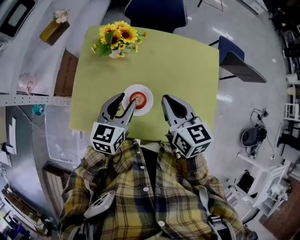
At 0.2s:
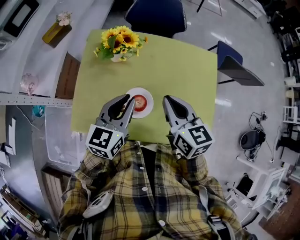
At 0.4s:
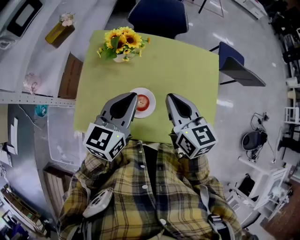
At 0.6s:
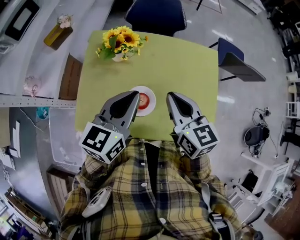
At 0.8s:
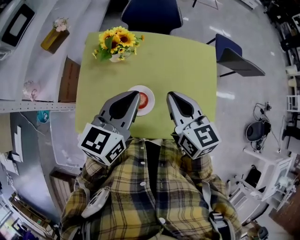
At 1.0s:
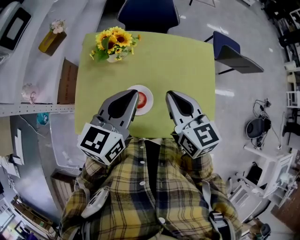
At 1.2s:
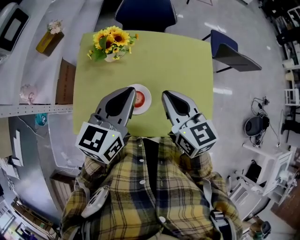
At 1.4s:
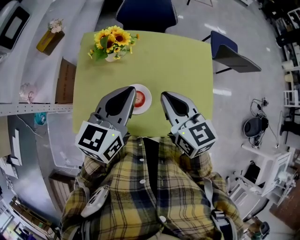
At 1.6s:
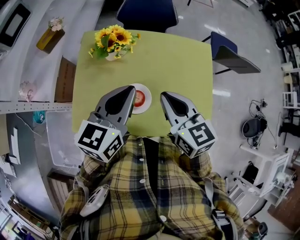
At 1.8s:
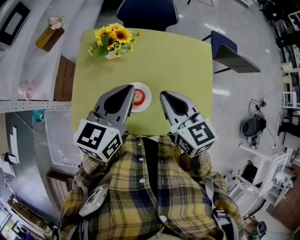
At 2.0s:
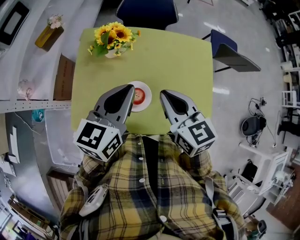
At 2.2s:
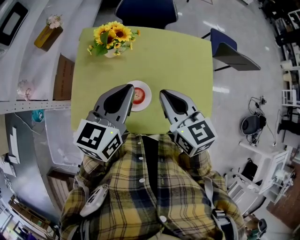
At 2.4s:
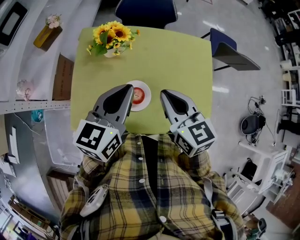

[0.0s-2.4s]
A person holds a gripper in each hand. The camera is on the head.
0.0s to 1.2s: The right gripper goes some 5 cm upward. Meanwhile the left gripper is displaced upward by roughly 15 cm, and closes.
1.2s to 2.4s: There are only small adjustments of the grippers.

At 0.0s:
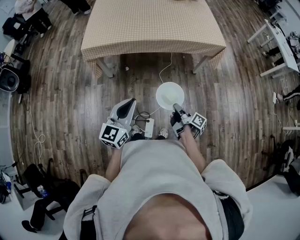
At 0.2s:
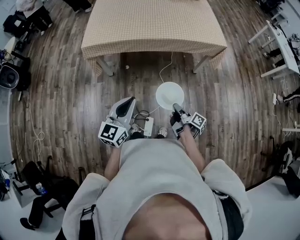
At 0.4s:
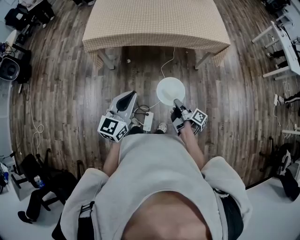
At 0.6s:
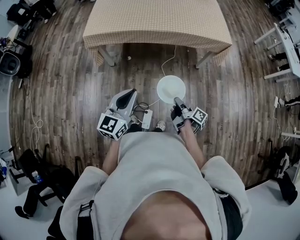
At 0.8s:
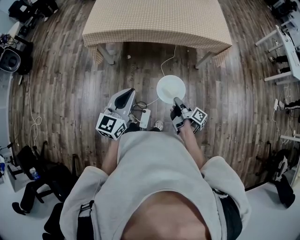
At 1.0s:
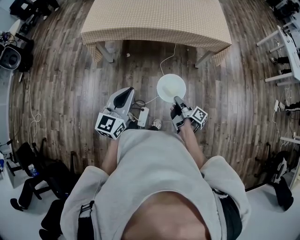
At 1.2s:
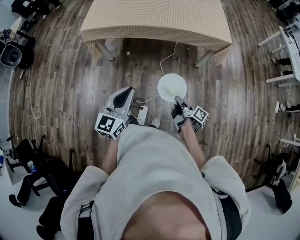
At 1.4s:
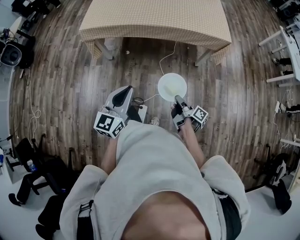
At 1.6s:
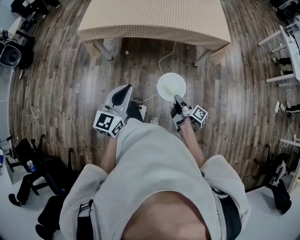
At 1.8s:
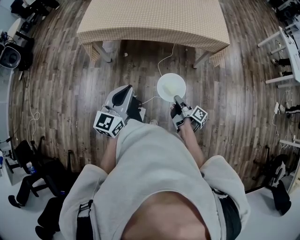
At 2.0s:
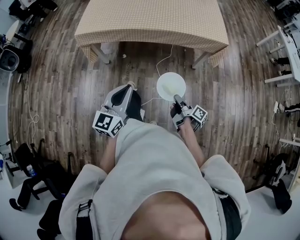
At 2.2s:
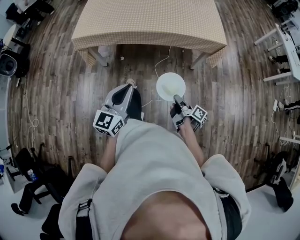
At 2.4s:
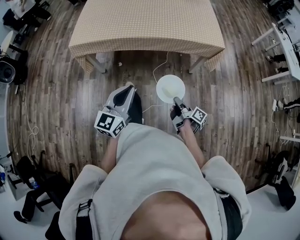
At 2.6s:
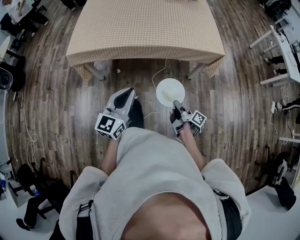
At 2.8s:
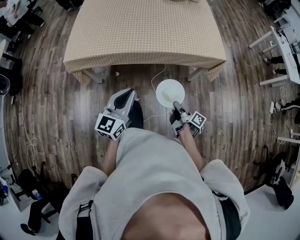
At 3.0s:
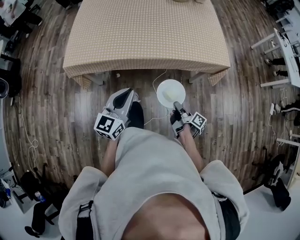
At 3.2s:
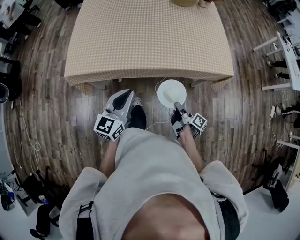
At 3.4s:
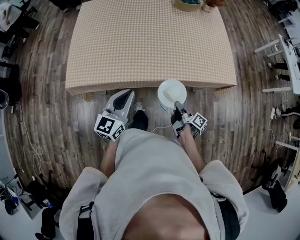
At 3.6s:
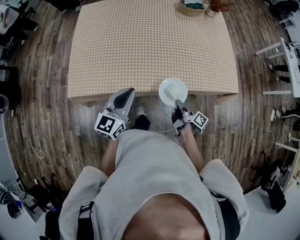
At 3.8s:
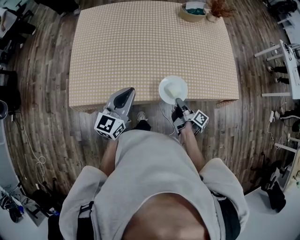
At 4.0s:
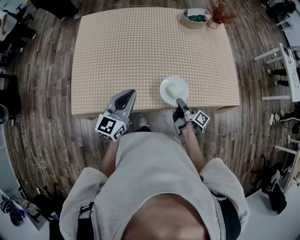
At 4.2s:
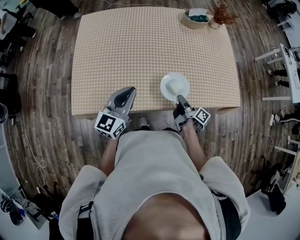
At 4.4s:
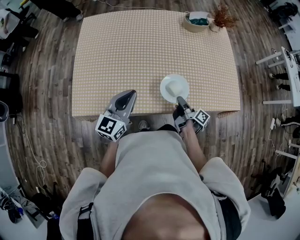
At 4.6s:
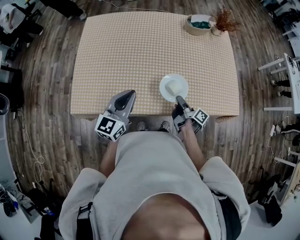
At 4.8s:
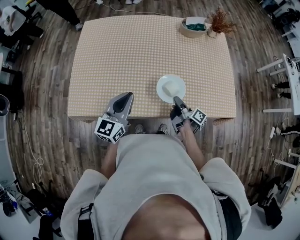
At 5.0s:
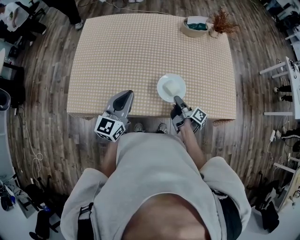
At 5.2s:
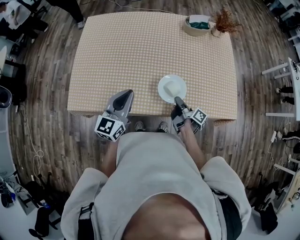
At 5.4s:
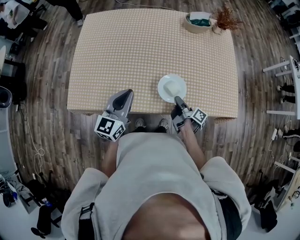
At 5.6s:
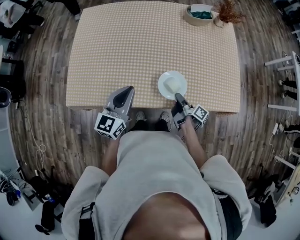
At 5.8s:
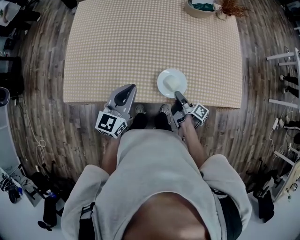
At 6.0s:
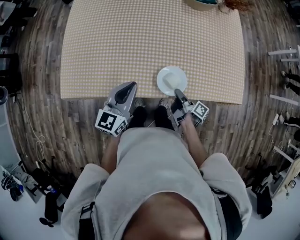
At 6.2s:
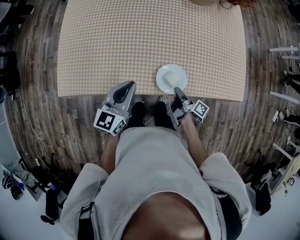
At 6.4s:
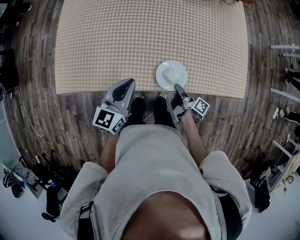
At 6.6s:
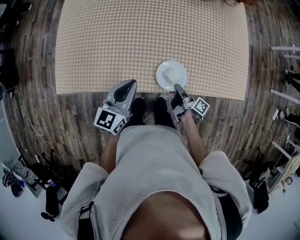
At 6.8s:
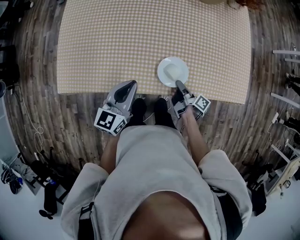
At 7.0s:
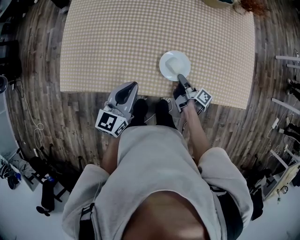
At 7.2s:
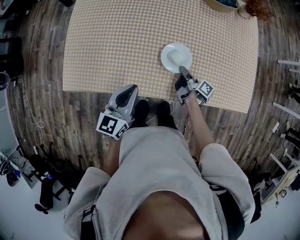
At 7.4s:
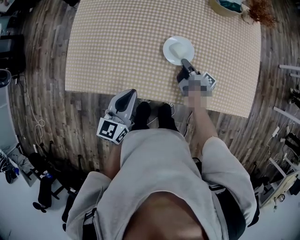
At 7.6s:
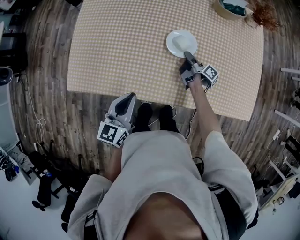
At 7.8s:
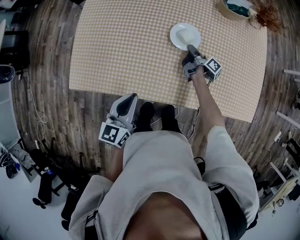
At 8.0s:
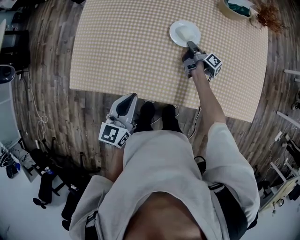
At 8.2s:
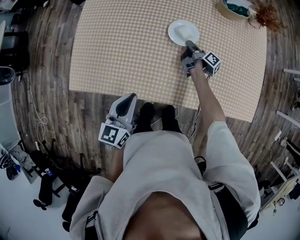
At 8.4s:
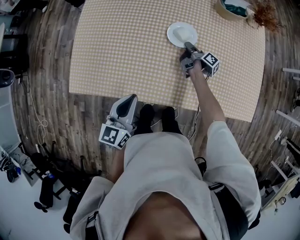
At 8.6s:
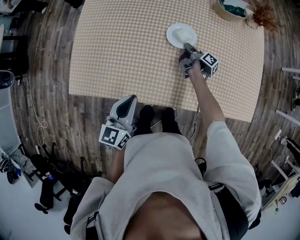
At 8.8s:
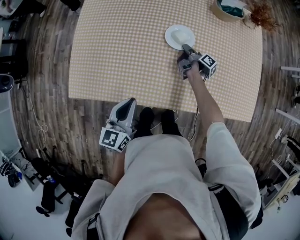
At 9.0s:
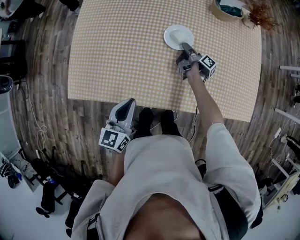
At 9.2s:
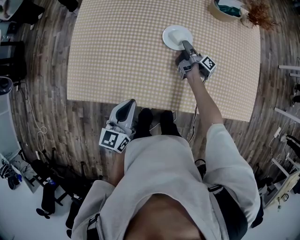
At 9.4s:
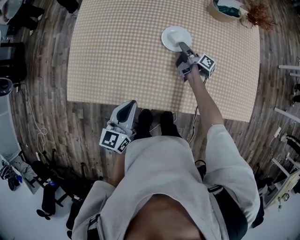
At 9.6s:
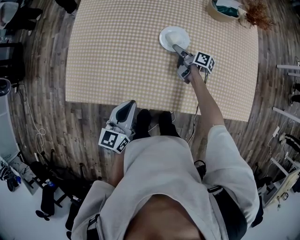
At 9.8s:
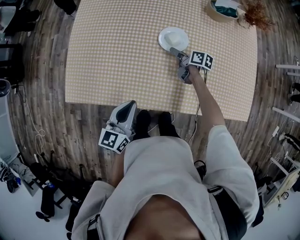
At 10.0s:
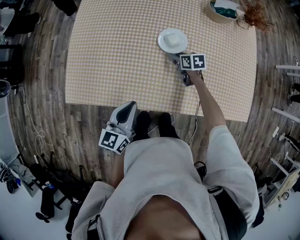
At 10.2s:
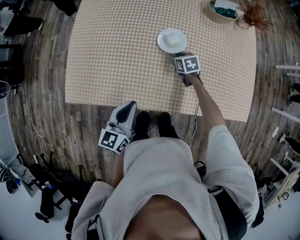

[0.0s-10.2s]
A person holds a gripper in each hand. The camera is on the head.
0.0s to 1.4s: The left gripper moves roughly 10 cm.
1.4s to 3.0s: The left gripper moves roughly 30 cm.
3.0s to 4.4s: The left gripper shifts by roughly 35 cm.
4.4s to 5.8s: The left gripper moves roughly 5 cm.
5.8s to 7.2s: The left gripper shifts by approximately 5 cm.

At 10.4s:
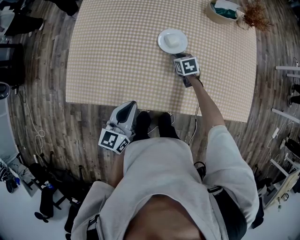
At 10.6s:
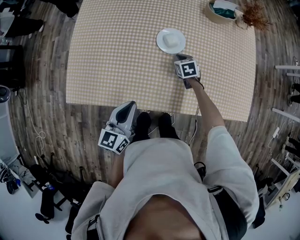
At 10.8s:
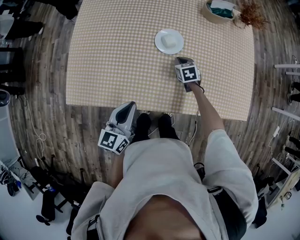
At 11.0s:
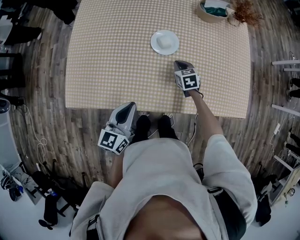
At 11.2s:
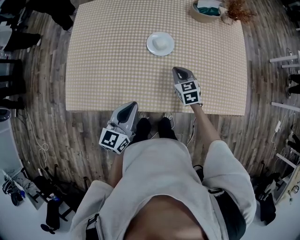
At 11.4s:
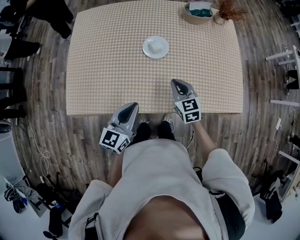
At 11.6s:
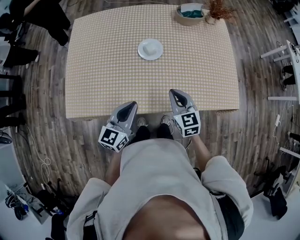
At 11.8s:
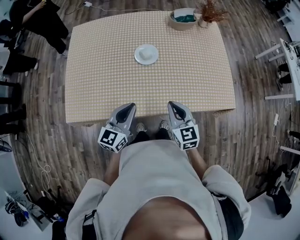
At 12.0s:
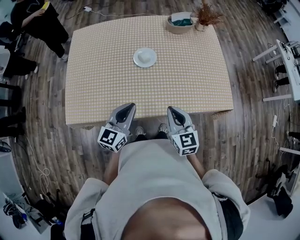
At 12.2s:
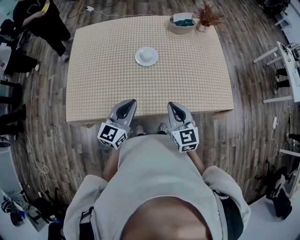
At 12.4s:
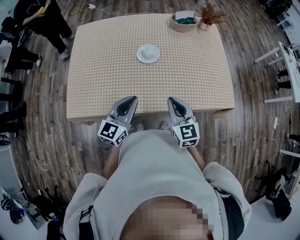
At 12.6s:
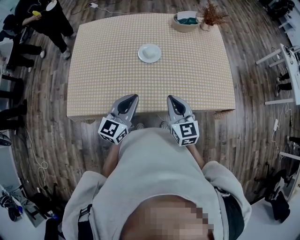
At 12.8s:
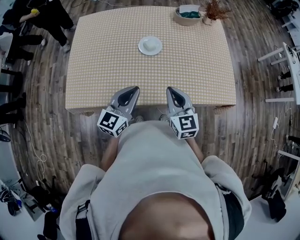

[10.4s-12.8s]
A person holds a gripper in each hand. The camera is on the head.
10.4s to 11.6s: The left gripper shifts by some 10 cm.

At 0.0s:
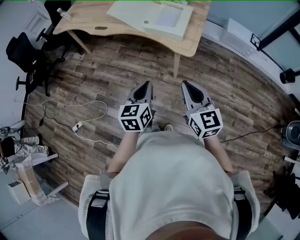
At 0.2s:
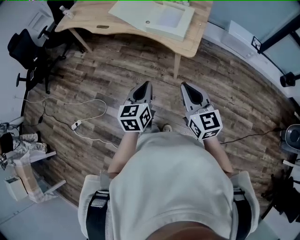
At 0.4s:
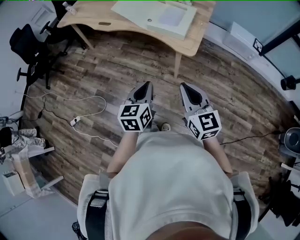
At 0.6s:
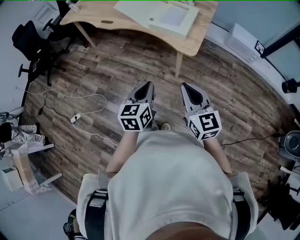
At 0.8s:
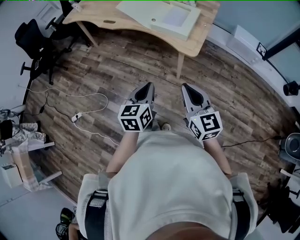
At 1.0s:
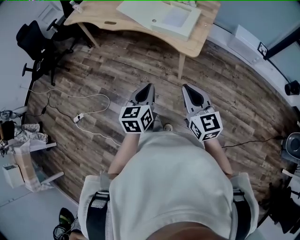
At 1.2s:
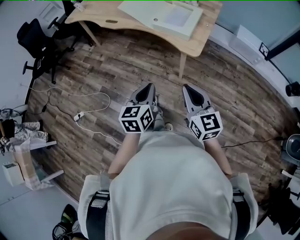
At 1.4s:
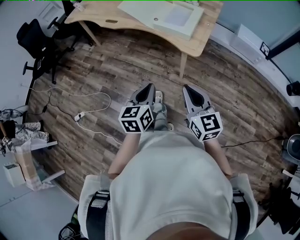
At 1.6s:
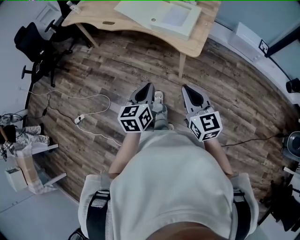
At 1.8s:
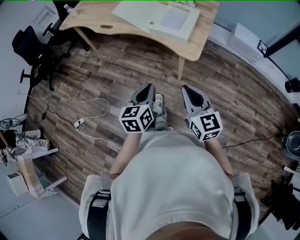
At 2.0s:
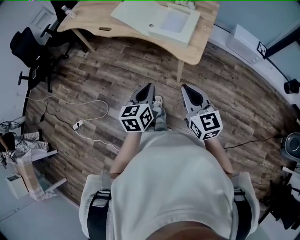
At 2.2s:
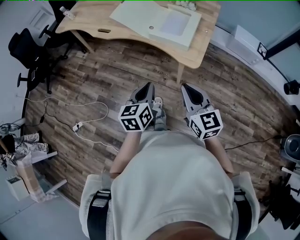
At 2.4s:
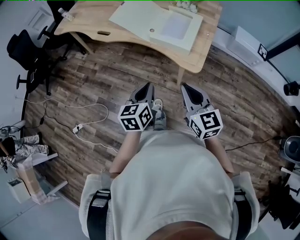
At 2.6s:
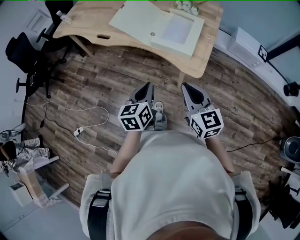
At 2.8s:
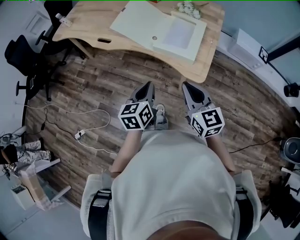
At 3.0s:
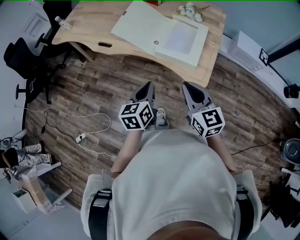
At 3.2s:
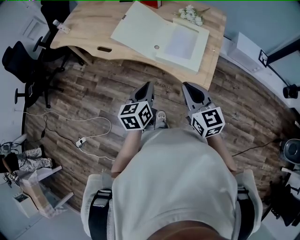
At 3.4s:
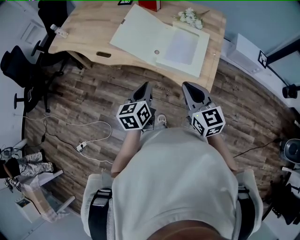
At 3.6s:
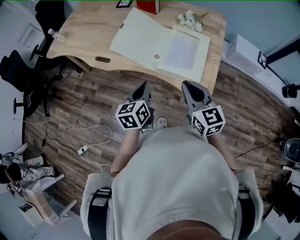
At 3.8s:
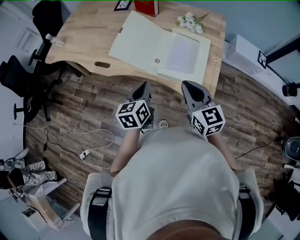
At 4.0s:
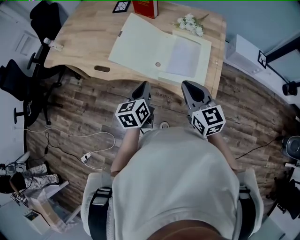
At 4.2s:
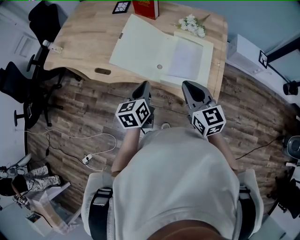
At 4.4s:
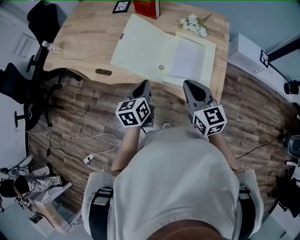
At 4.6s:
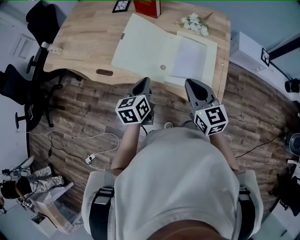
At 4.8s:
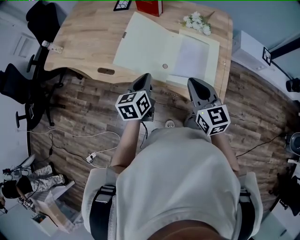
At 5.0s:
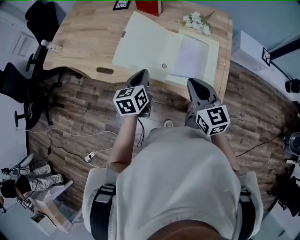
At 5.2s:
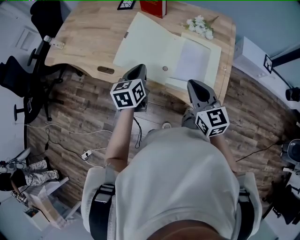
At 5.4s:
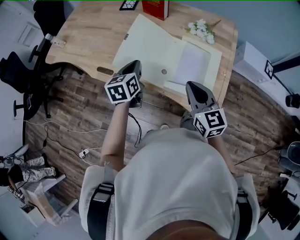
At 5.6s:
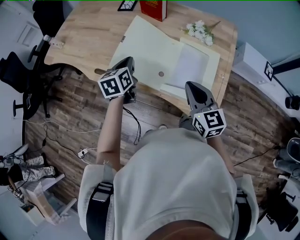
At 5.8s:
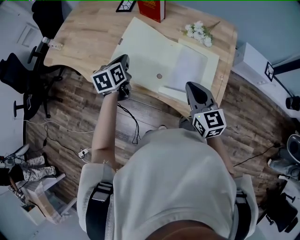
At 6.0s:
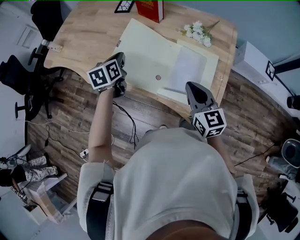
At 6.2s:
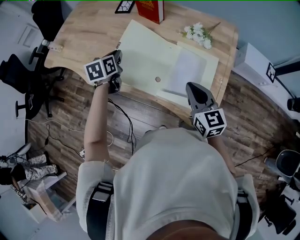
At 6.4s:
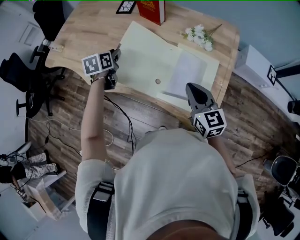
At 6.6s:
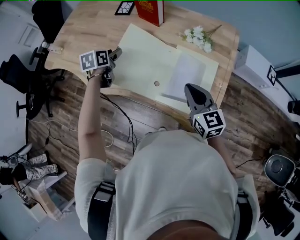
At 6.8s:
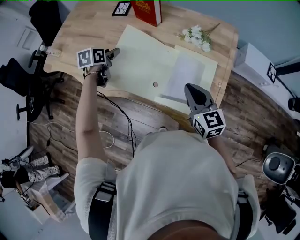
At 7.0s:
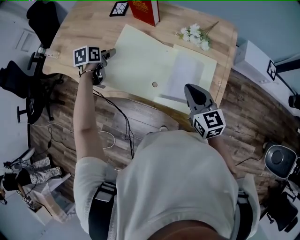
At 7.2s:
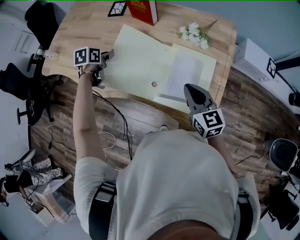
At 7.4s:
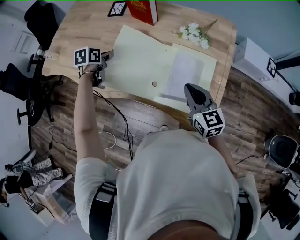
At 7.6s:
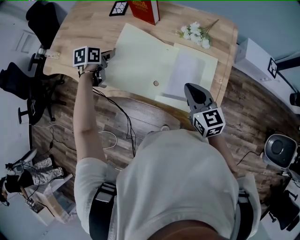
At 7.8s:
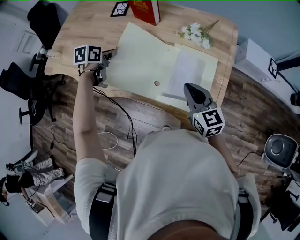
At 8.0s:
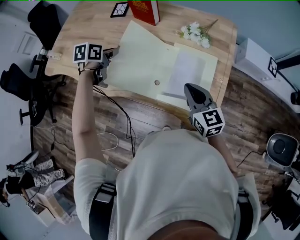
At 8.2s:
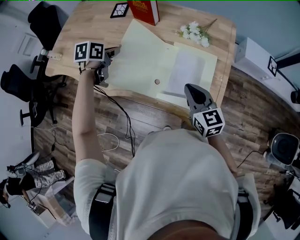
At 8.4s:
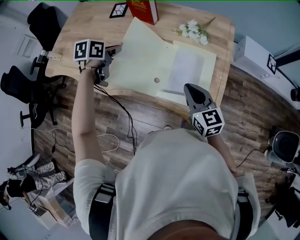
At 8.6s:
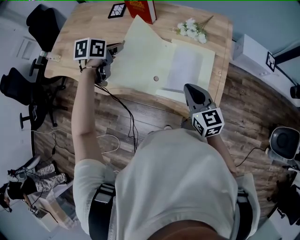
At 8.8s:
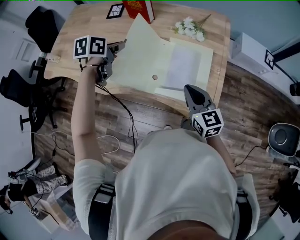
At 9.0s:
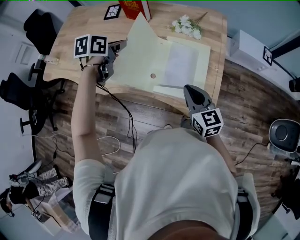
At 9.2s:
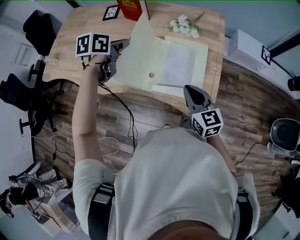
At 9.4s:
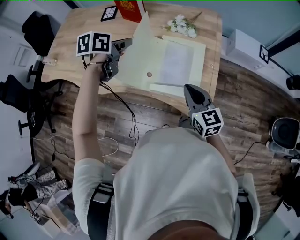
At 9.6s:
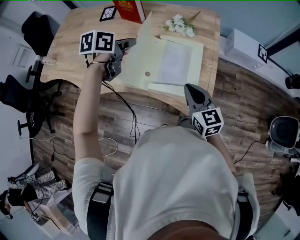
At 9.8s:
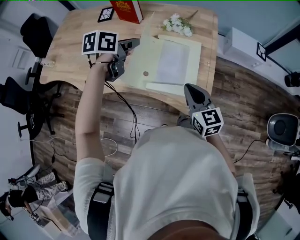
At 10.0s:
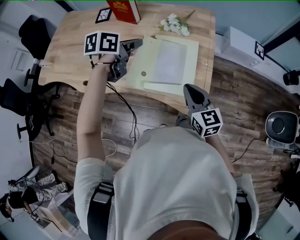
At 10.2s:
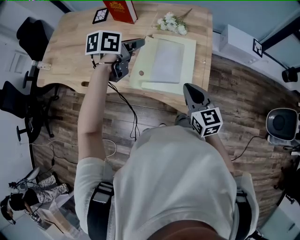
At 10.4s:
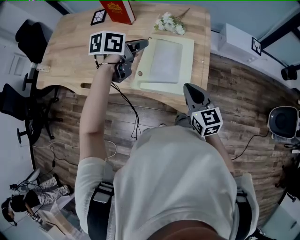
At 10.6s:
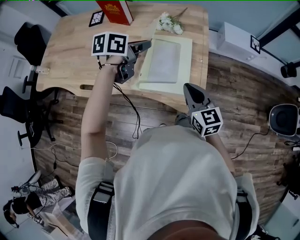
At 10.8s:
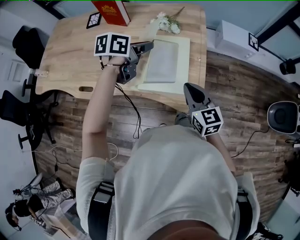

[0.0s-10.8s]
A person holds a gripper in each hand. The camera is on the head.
0.0s to 1.6s: There are only small adjustments of the grippers.
1.6s to 3.0s: The two grippers go some 20 cm forward.
3.0s to 4.6s: Both grippers travel together forward, some 20 cm.
4.6s to 6.2s: The left gripper travels forward by some 20 cm; the right gripper travels forward and to the right by approximately 10 cm.
6.2s to 7.8s: The left gripper swivels about 20 degrees, and opens and closes again.
7.8s to 9.2s: The left gripper travels to the right and upward by approximately 15 cm, while the right gripper goes about 5 cm backward.
9.2s to 10.8s: The left gripper is displaced to the right by some 15 cm. Meanwhile the right gripper shifts some 5 cm to the right.
